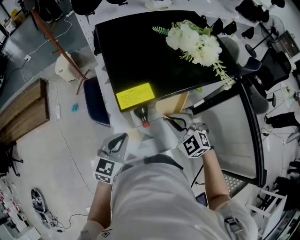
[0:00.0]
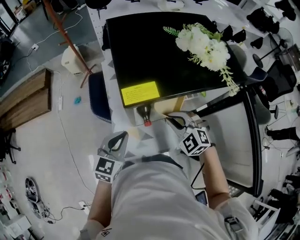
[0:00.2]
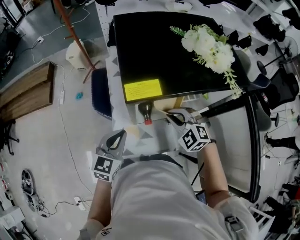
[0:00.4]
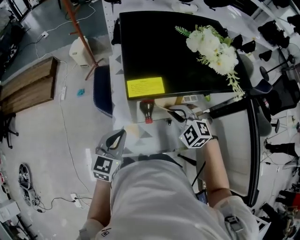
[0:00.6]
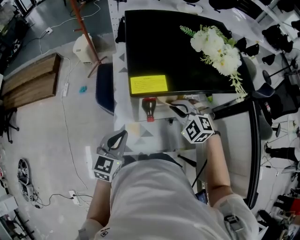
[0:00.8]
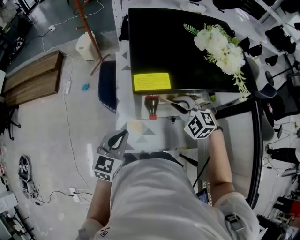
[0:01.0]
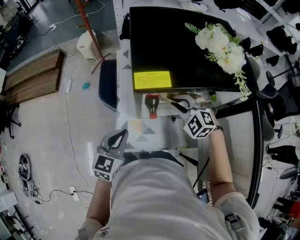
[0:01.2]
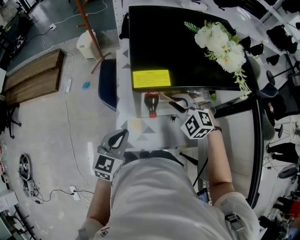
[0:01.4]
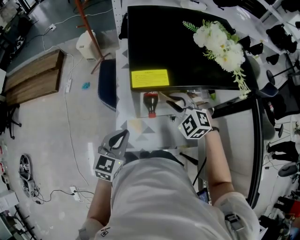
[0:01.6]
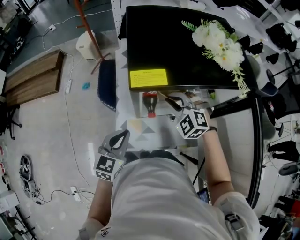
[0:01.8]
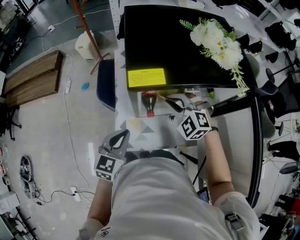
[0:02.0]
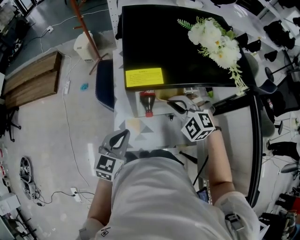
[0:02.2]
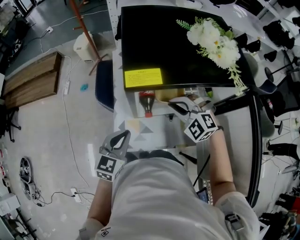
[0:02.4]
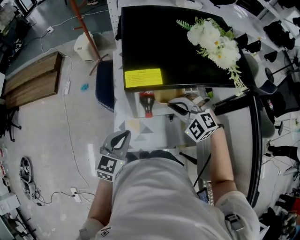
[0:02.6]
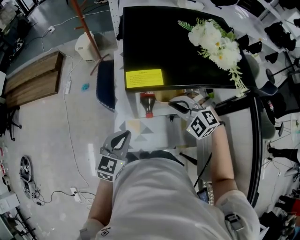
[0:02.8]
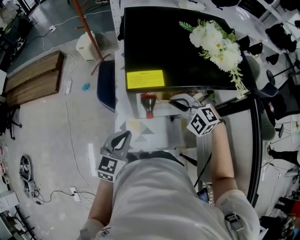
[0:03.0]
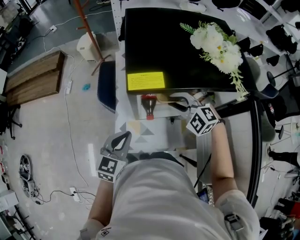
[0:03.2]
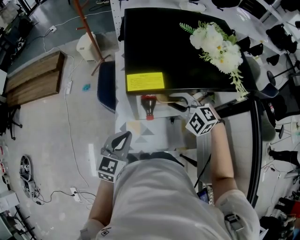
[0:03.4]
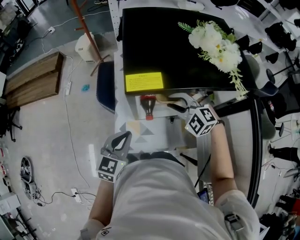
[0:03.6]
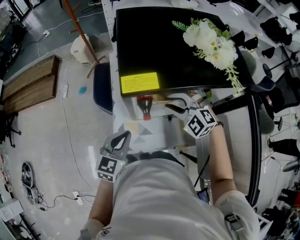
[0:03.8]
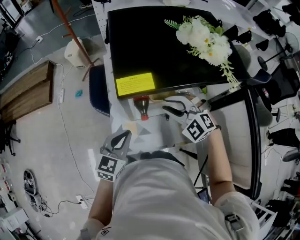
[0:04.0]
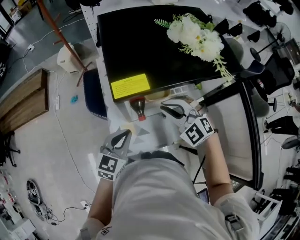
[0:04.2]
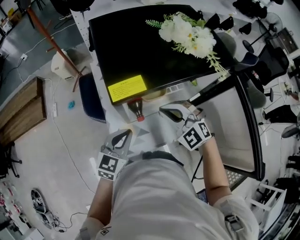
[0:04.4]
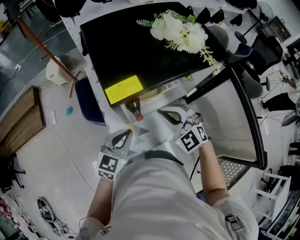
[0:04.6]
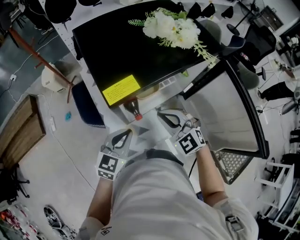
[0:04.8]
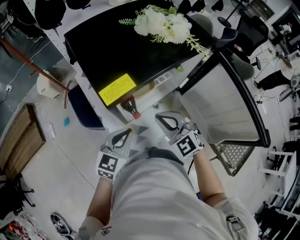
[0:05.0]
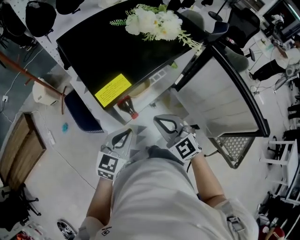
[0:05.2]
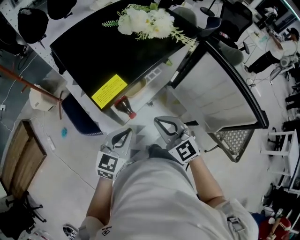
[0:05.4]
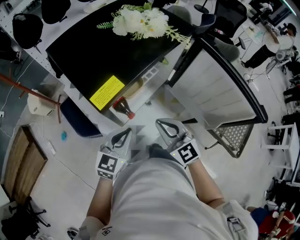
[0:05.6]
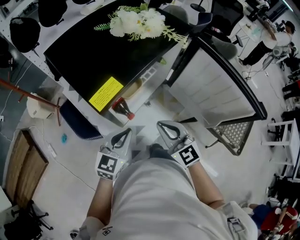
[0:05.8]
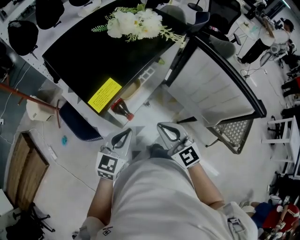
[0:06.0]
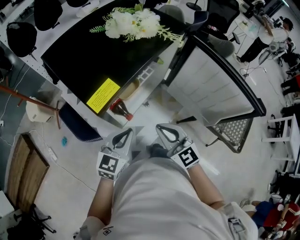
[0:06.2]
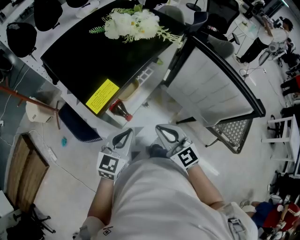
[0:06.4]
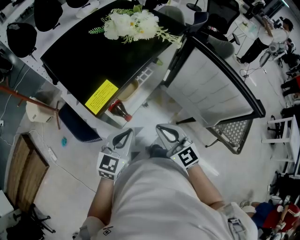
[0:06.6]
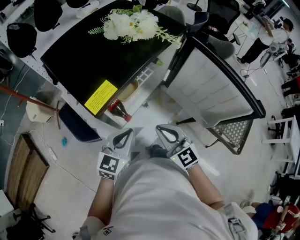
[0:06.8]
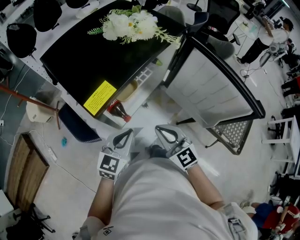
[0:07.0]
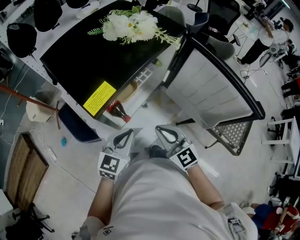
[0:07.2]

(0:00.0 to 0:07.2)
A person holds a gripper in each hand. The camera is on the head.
0:00.0 - 0:01.4: The right gripper heads forward, covering approximately 5 cm, and rotates about 20 degrees.
0:01.4 - 0:02.8: There are only small adjustments of the grippers.
0:02.8 - 0:04.4: The right gripper moves roughly 5 cm, rotates roughly 30 degrees, and opens and closes again.
0:04.4 - 0:05.8: The left gripper rotates some 30 degrees. Meanwhile the right gripper ends up some 10 cm from where it was, and swivels some 50 degrees.
0:05.8 - 0:07.2: The grippers make only small movements.

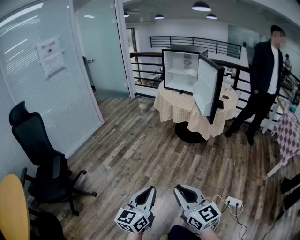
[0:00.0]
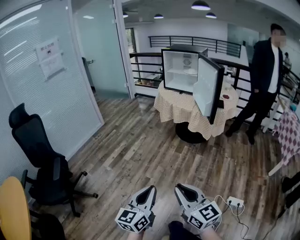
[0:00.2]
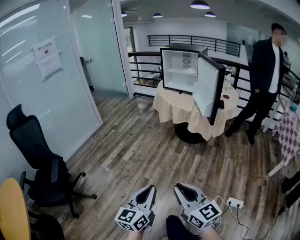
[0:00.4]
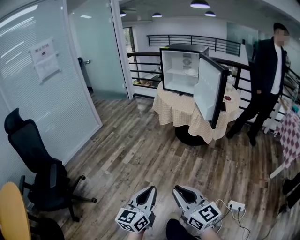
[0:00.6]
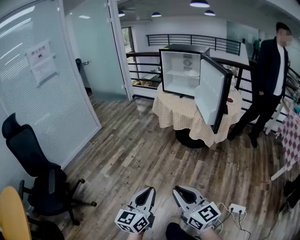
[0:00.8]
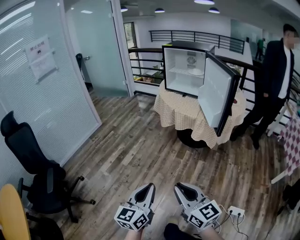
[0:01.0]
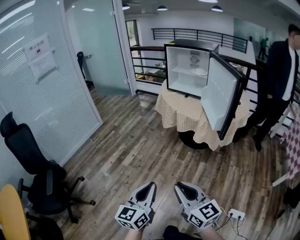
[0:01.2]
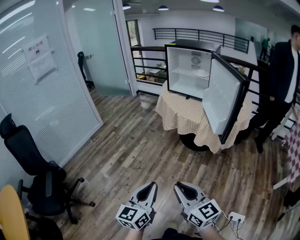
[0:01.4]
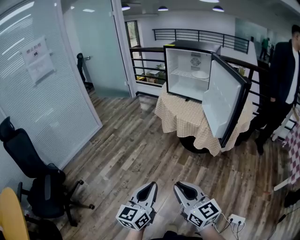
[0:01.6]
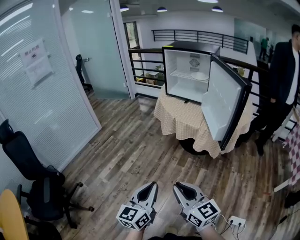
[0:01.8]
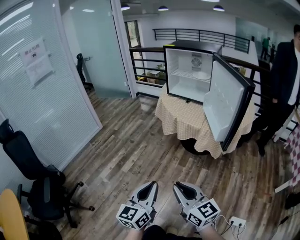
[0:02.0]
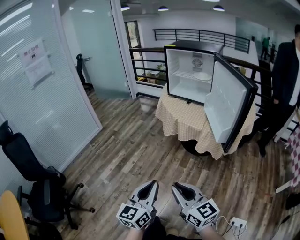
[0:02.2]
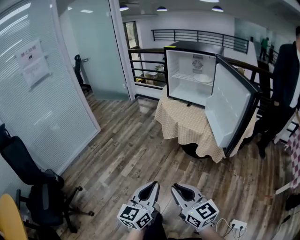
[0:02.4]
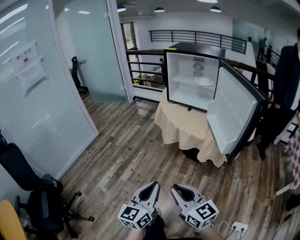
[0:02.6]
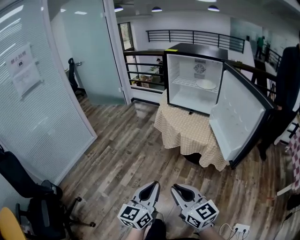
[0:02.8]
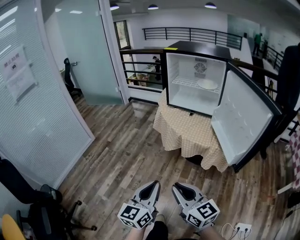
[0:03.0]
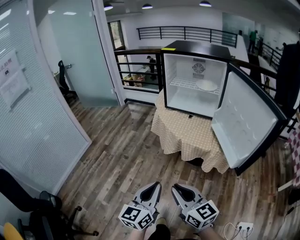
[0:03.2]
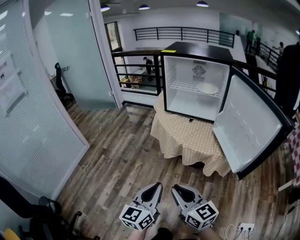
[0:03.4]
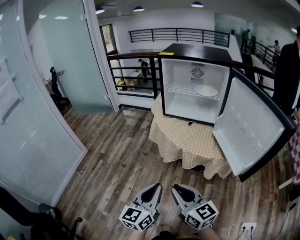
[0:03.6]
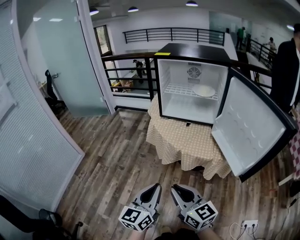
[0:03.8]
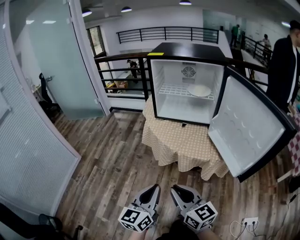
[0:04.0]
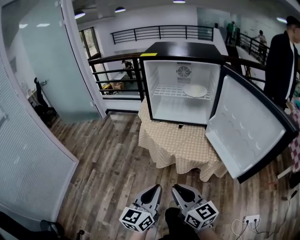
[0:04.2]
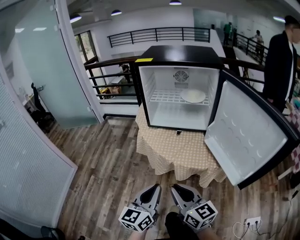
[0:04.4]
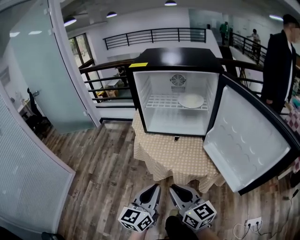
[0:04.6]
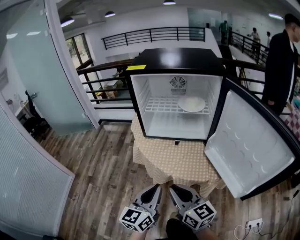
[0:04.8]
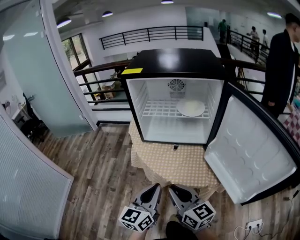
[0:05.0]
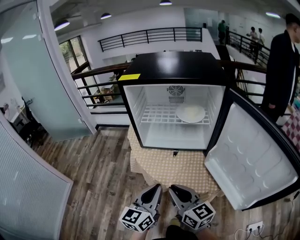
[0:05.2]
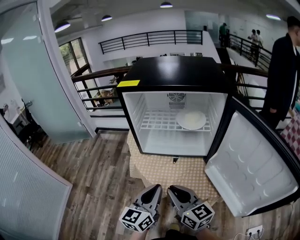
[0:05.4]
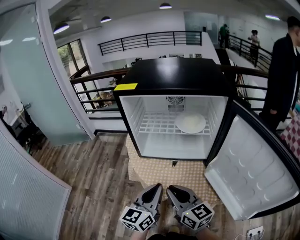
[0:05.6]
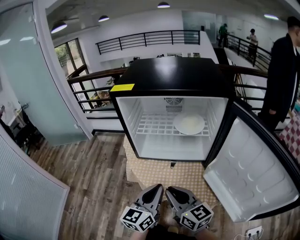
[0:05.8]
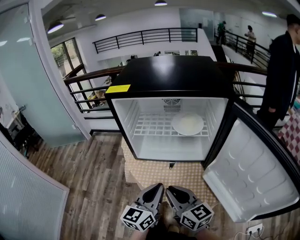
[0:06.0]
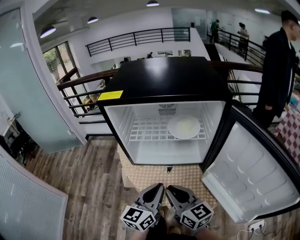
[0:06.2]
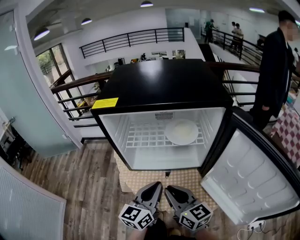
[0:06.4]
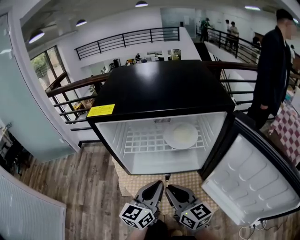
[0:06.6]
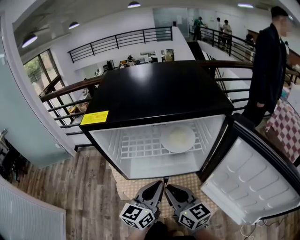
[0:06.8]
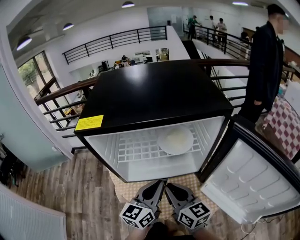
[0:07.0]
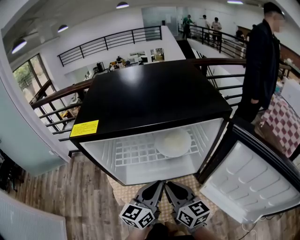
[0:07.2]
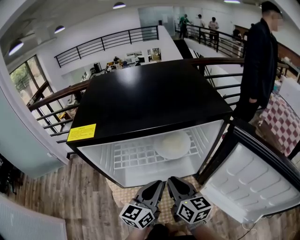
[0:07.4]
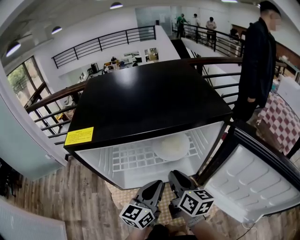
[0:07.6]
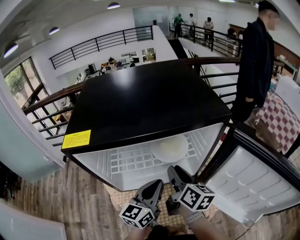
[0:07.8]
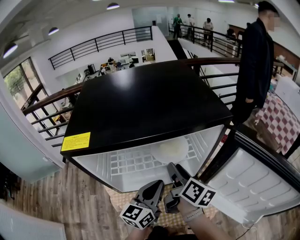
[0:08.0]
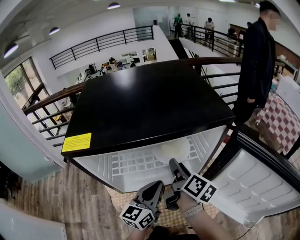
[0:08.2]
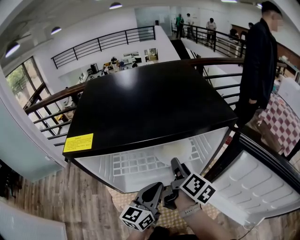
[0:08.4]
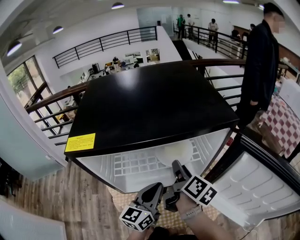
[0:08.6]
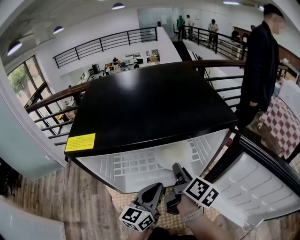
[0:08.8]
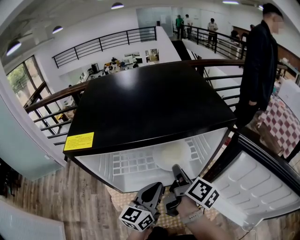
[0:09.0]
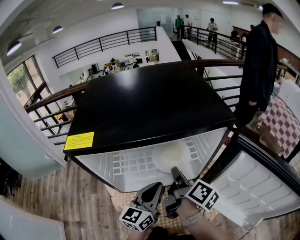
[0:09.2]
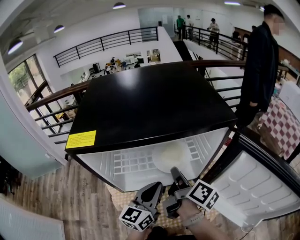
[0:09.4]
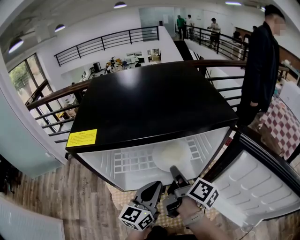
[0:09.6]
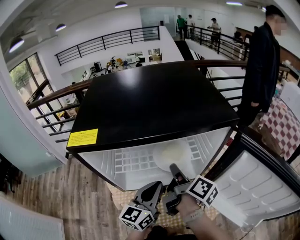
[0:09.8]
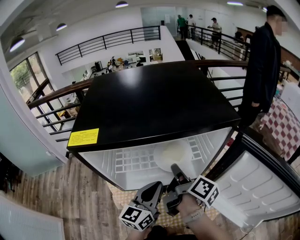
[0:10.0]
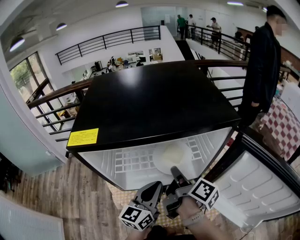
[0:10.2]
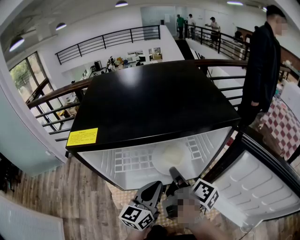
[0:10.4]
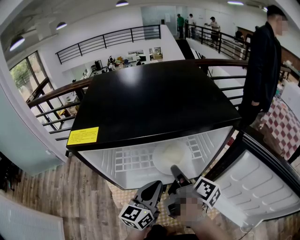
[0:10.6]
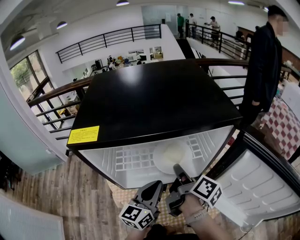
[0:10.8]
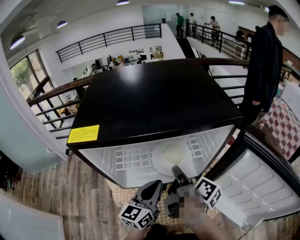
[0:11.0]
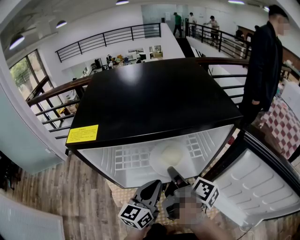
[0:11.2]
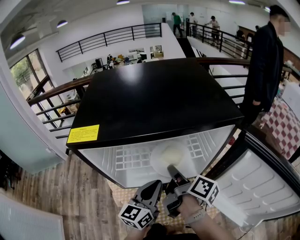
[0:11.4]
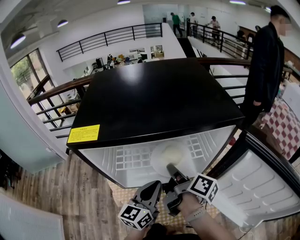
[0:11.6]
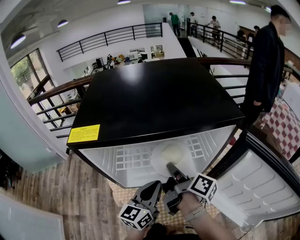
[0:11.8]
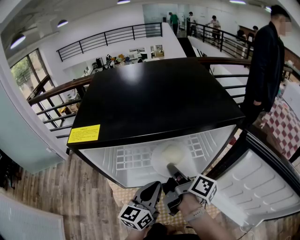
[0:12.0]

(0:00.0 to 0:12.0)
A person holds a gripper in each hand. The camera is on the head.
0:00.0 - 0:01.6: The grippers both shift forward by approximately 25 cm.
0:01.6 - 0:03.0: The grippers both shift forward by approximately 25 cm.
0:03.0 - 0:04.4: Both grippers move forward, some 20 cm.
0:04.4 - 0:06.0: The two grippers go approximately 20 cm forward.
0:06.0 - 0:07.6: The grippers both shift forward by about 15 cm. The right gripper changes its angle by about 40 degrees.
0:07.6 - 0:09.0: The right gripper turns by approximately 30 degrees, and opens and closes again.
0:09.0 - 0:12.0: The grippers make only small movements.

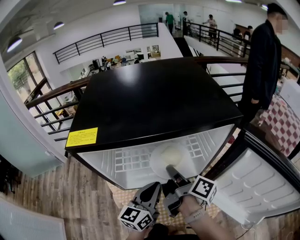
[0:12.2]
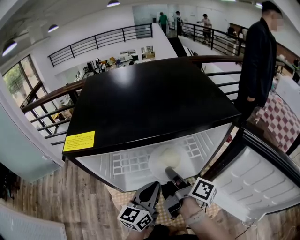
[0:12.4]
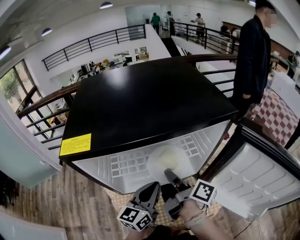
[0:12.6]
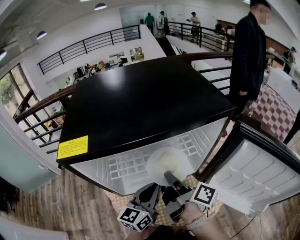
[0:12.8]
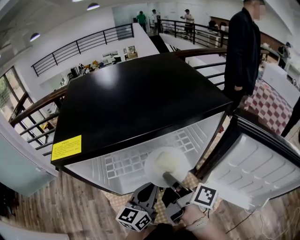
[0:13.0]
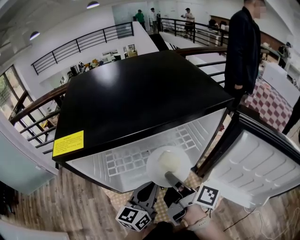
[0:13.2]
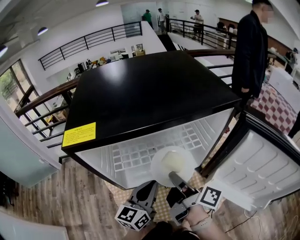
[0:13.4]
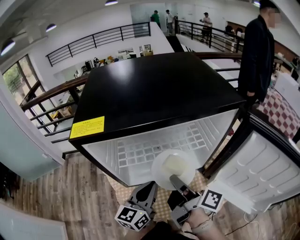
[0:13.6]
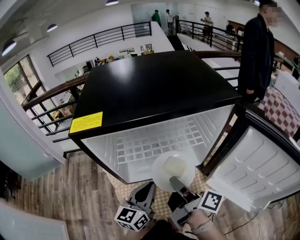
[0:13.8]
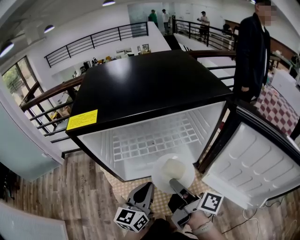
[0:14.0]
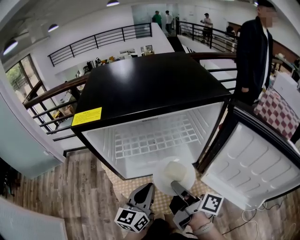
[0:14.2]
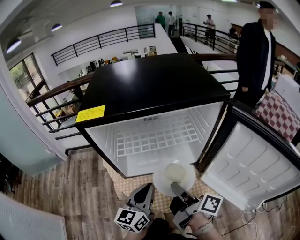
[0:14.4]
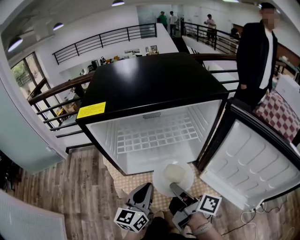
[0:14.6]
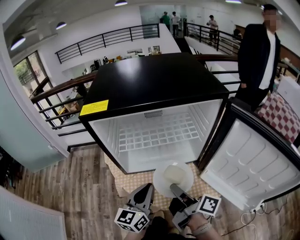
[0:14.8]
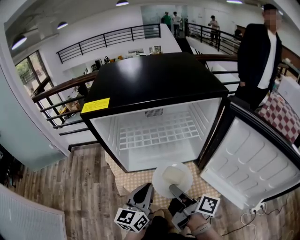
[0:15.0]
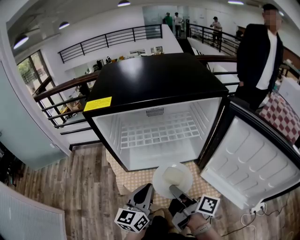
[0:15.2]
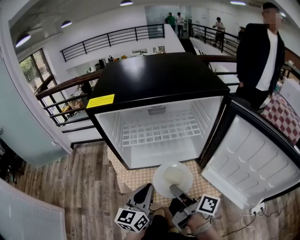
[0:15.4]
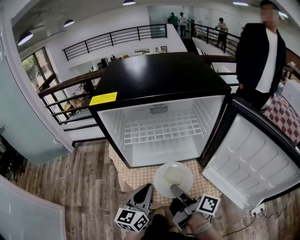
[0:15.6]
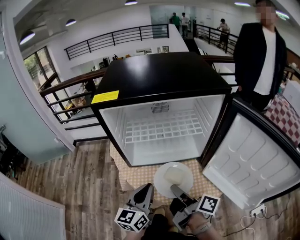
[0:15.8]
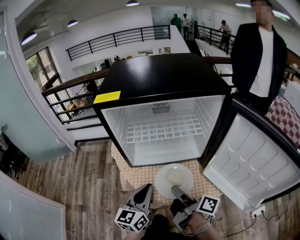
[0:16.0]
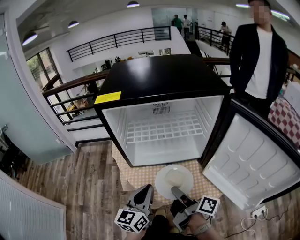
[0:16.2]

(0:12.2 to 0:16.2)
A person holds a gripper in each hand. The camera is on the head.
0:12.2 - 0:13.6: The right gripper heads backward, covering about 5 cm.
0:13.6 - 0:14.8: Both grippers travel together backward, roughly 10 cm.
0:14.8 - 0:16.2: The grippers move only a little.

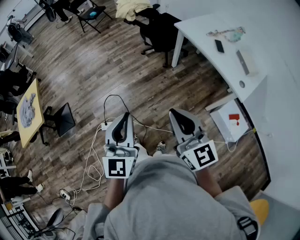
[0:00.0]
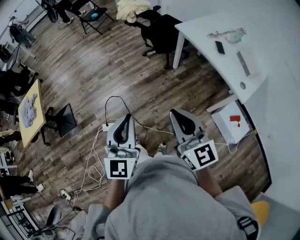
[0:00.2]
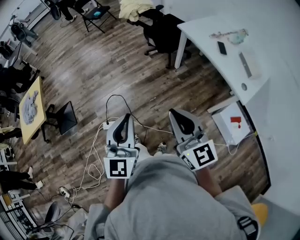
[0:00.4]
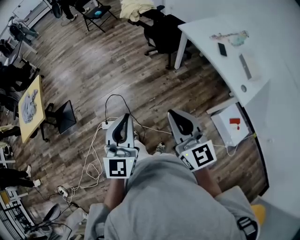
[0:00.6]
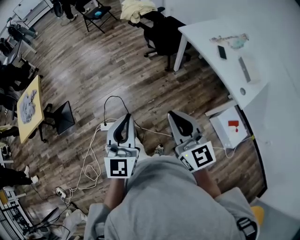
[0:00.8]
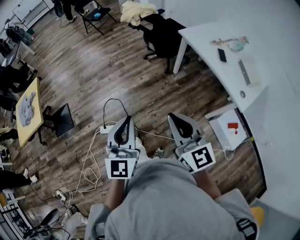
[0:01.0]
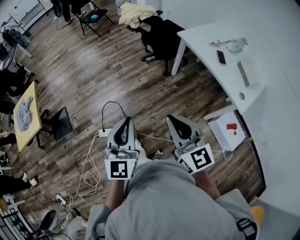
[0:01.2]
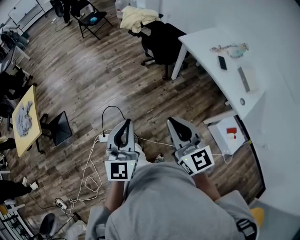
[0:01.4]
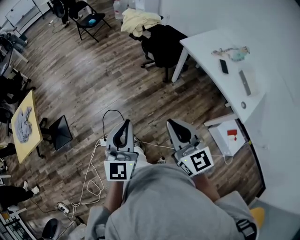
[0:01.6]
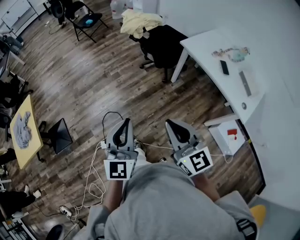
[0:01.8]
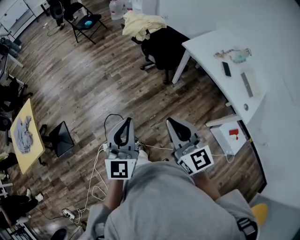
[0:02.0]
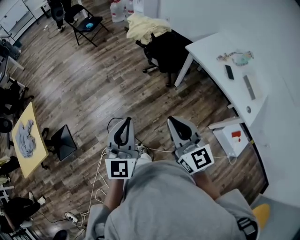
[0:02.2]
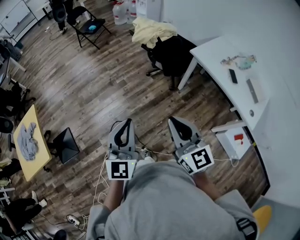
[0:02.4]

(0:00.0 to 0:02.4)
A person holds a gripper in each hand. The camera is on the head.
0:00.0 - 0:01.2: The right gripper moves about 5 cm. Meanwhile the left gripper ends up about 5 cm from where it was.
0:01.2 - 0:02.4: The two grippers go about 25 cm forward and to the left.
